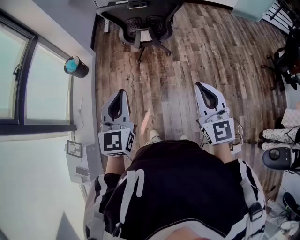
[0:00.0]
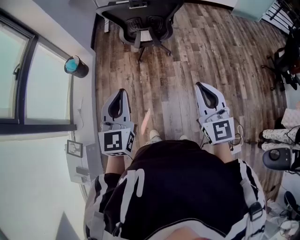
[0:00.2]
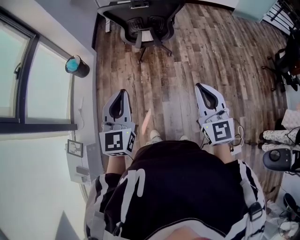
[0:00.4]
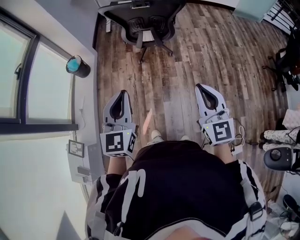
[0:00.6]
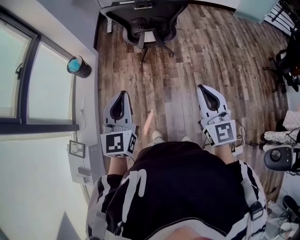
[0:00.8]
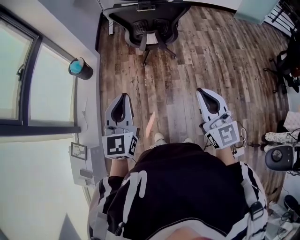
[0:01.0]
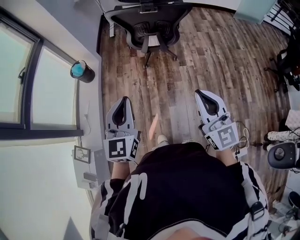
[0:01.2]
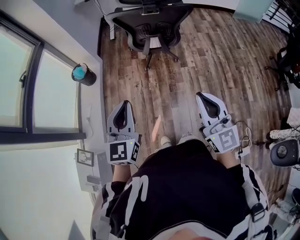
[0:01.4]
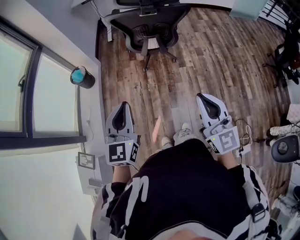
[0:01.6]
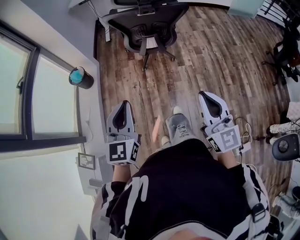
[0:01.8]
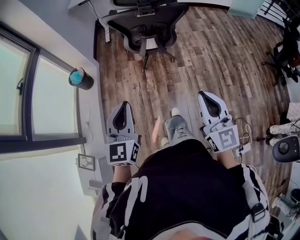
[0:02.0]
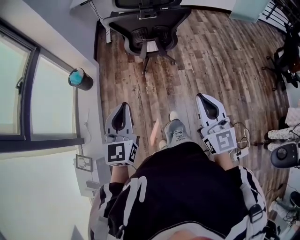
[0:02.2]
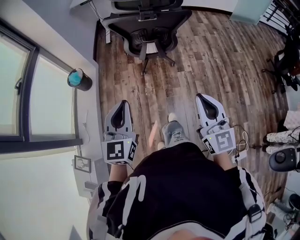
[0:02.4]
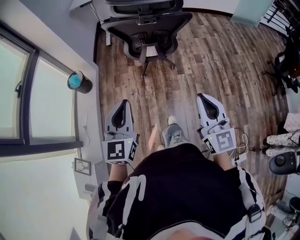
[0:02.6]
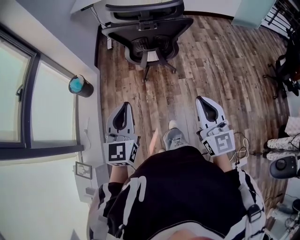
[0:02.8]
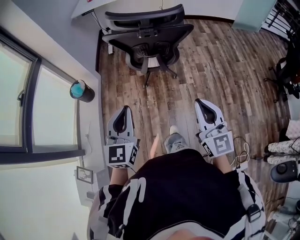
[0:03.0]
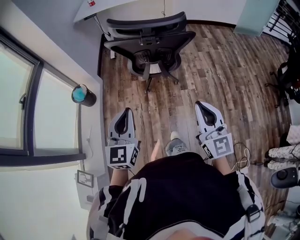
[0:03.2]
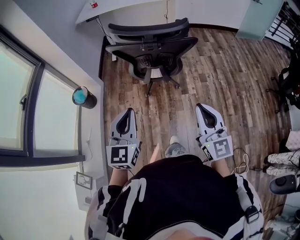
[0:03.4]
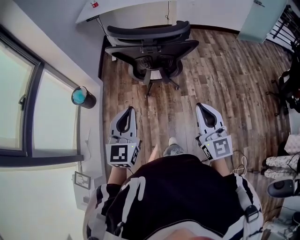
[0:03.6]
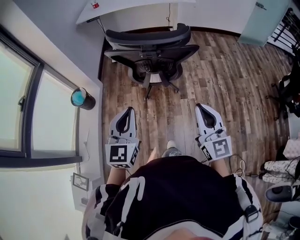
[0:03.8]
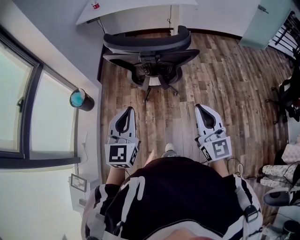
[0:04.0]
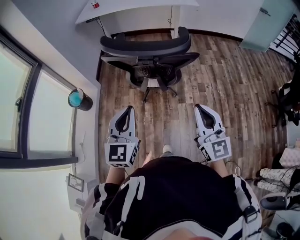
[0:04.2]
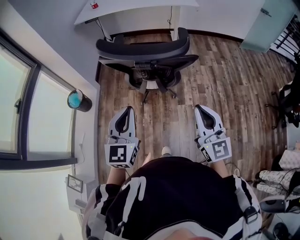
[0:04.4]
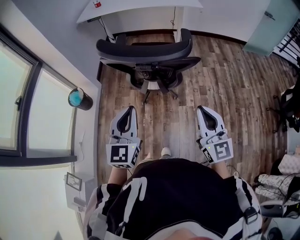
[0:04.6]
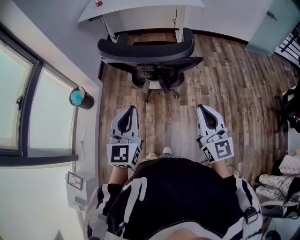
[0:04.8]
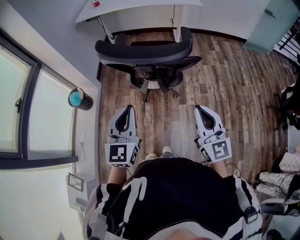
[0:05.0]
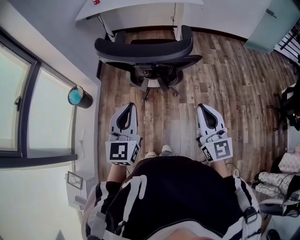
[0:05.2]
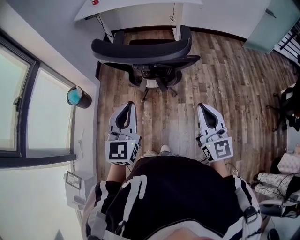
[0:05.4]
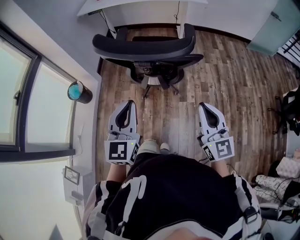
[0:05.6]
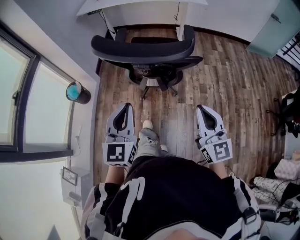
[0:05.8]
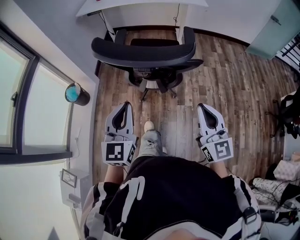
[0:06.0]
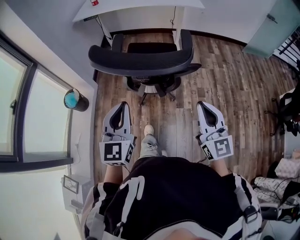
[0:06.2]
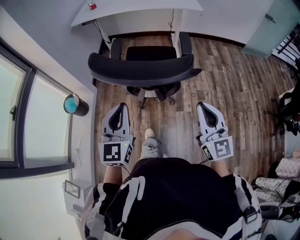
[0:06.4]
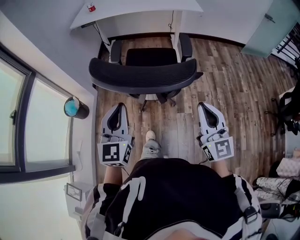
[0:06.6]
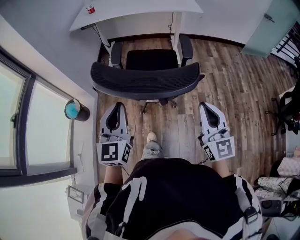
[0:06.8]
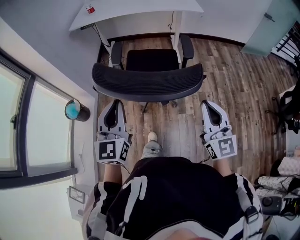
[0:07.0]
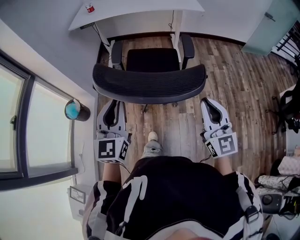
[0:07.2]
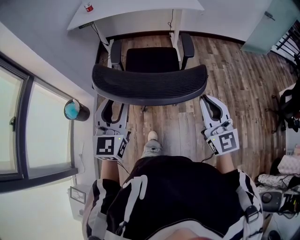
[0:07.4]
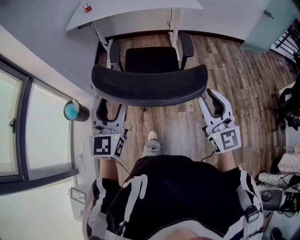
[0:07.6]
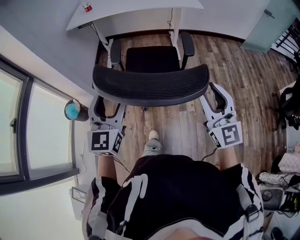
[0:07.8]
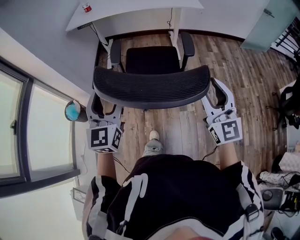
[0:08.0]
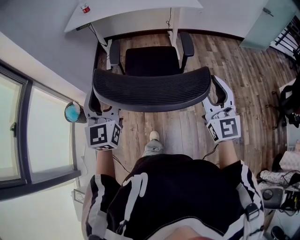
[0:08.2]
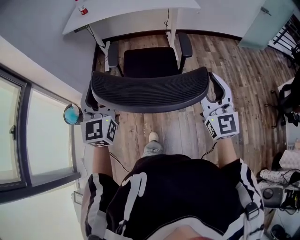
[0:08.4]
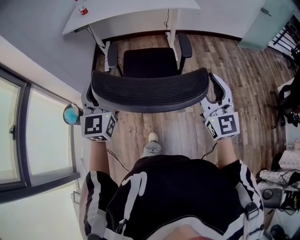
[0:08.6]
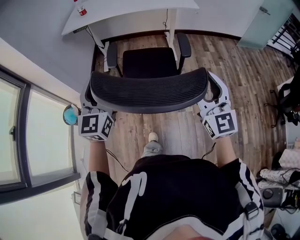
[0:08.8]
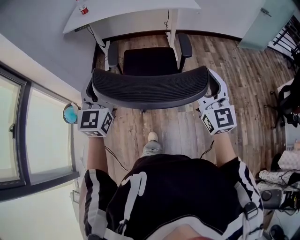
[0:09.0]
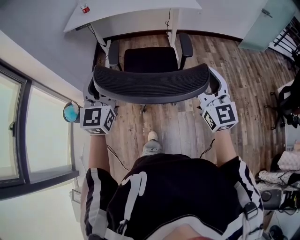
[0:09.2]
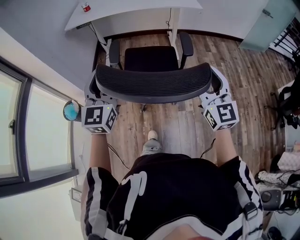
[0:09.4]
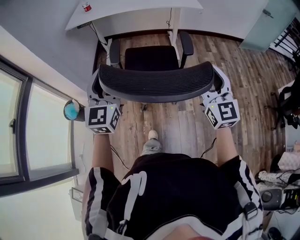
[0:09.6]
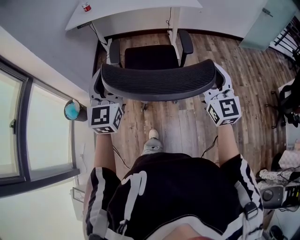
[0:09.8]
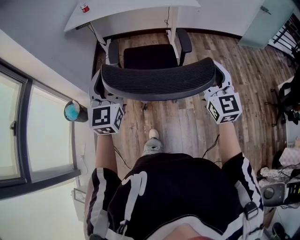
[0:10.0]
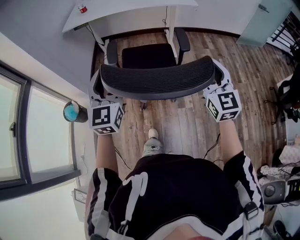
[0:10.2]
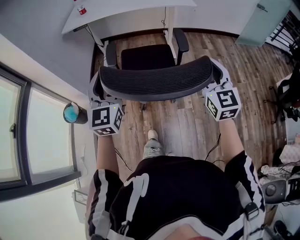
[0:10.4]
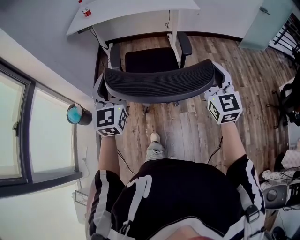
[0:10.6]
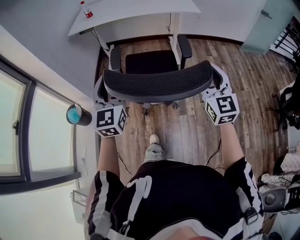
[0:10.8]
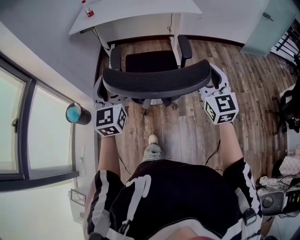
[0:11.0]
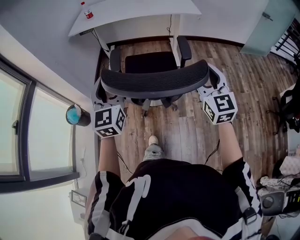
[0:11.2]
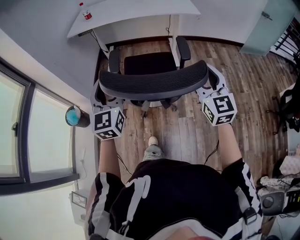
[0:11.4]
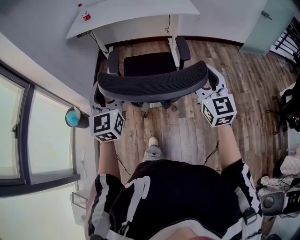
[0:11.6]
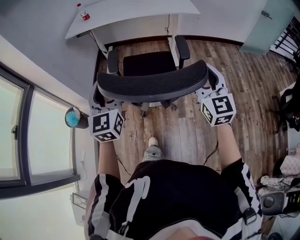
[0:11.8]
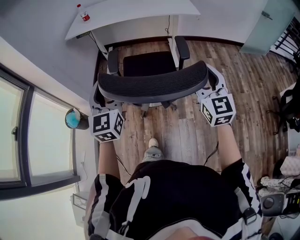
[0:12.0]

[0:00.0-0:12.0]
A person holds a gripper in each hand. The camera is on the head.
0:00.0 to 0:01.6: Both grippers move to the left, approximately 10 cm.
0:01.6 to 0:03.0: The two grippers go about 10 cm forward.
0:03.0 to 0:04.4: The two grippers go about 15 cm forward and to the right.
0:04.4 to 0:06.0: The right gripper goes approximately 5 cm forward.
0:06.0 to 0:07.6: Both grippers travel together forward, about 10 cm. The right gripper opens up. The left gripper opens its fingers.
0:07.6 to 0:09.0: Both grippers move forward, approximately 10 cm. The right gripper opens.
0:09.0 to 0:12.0: The grippers make only small movements.

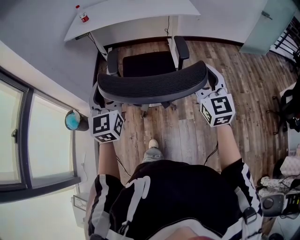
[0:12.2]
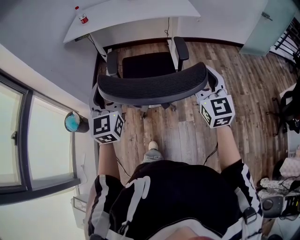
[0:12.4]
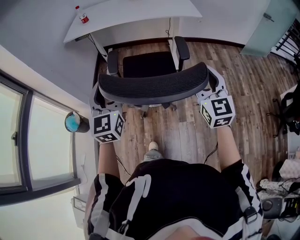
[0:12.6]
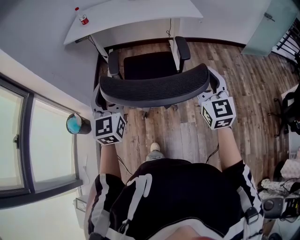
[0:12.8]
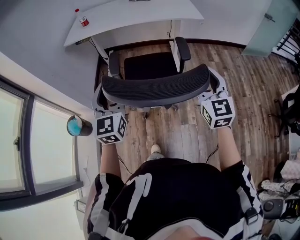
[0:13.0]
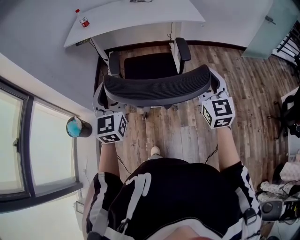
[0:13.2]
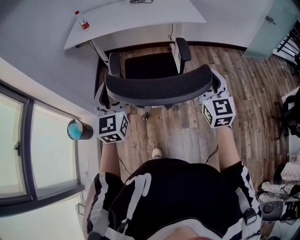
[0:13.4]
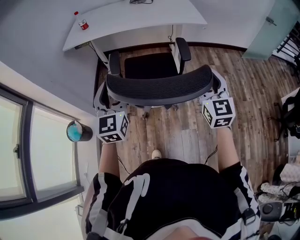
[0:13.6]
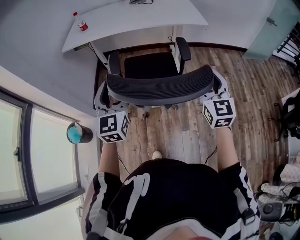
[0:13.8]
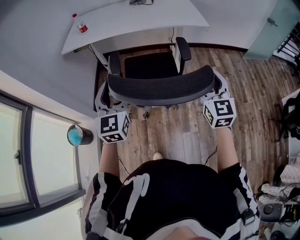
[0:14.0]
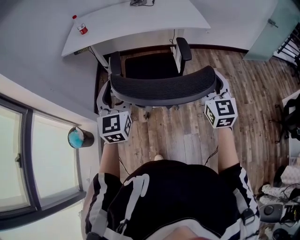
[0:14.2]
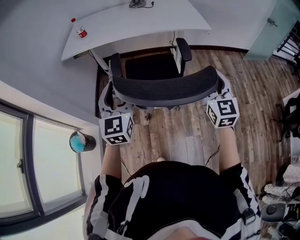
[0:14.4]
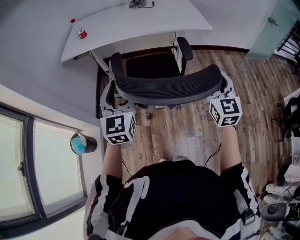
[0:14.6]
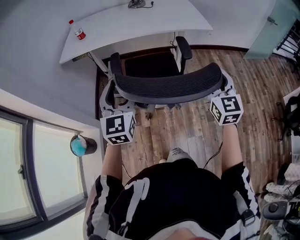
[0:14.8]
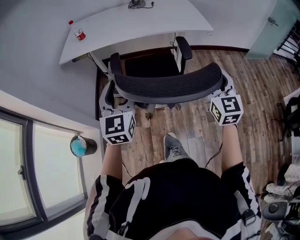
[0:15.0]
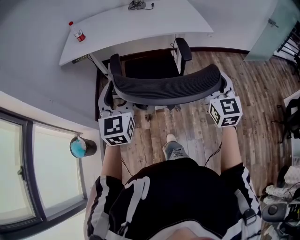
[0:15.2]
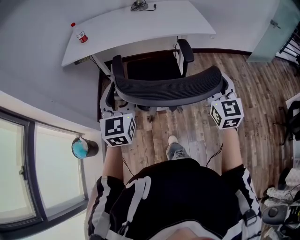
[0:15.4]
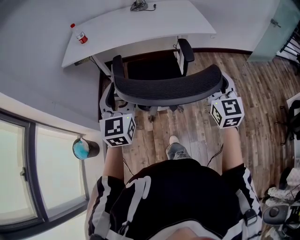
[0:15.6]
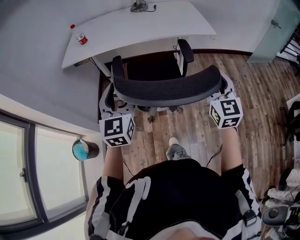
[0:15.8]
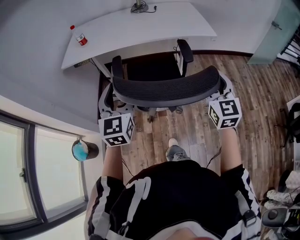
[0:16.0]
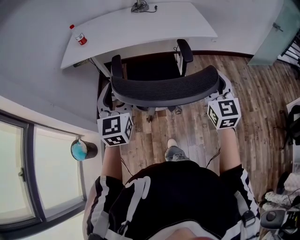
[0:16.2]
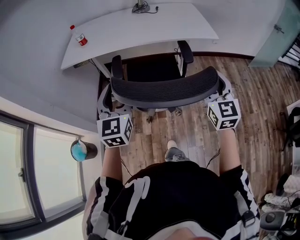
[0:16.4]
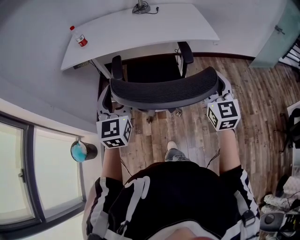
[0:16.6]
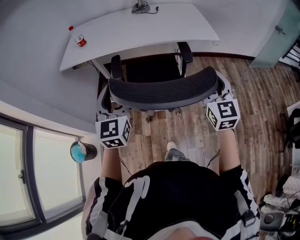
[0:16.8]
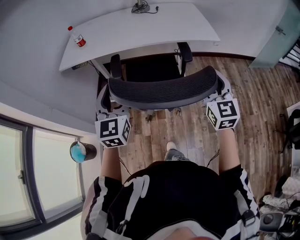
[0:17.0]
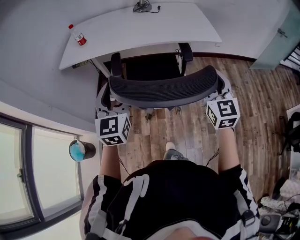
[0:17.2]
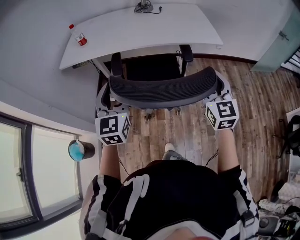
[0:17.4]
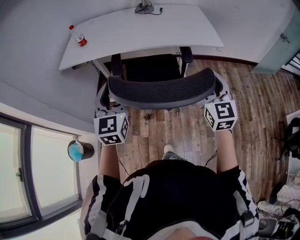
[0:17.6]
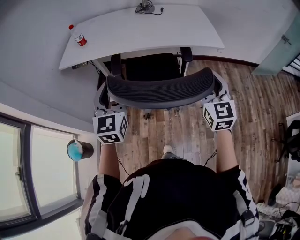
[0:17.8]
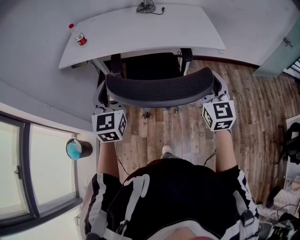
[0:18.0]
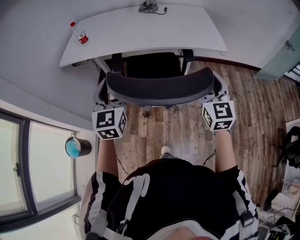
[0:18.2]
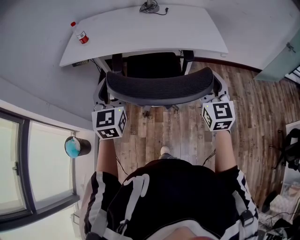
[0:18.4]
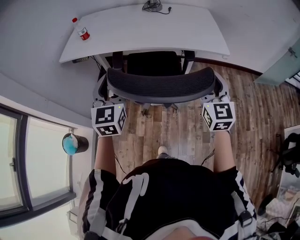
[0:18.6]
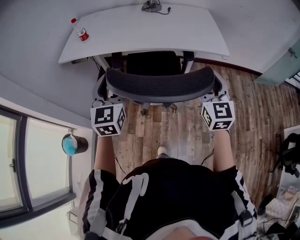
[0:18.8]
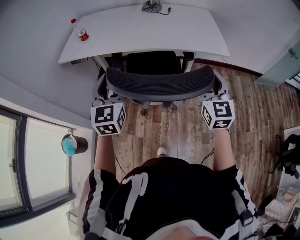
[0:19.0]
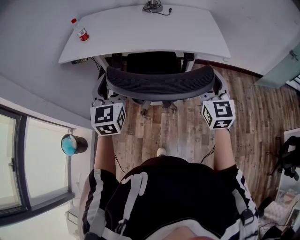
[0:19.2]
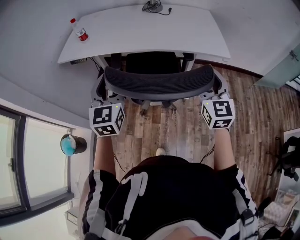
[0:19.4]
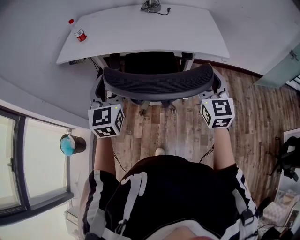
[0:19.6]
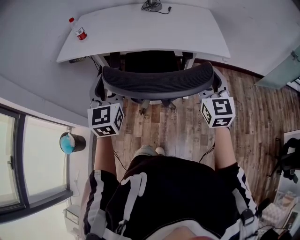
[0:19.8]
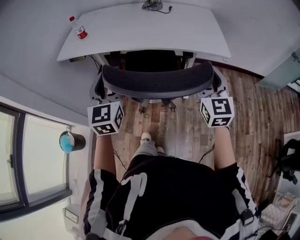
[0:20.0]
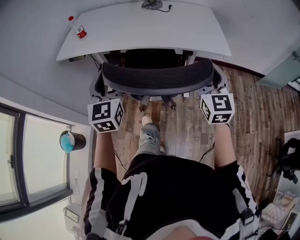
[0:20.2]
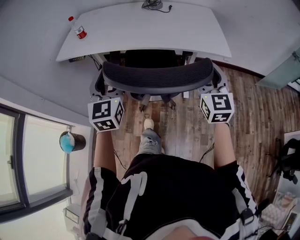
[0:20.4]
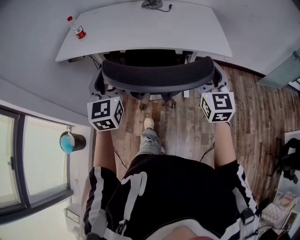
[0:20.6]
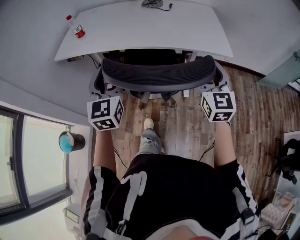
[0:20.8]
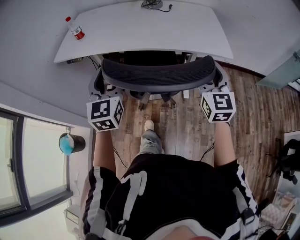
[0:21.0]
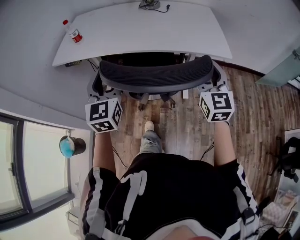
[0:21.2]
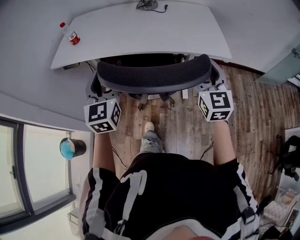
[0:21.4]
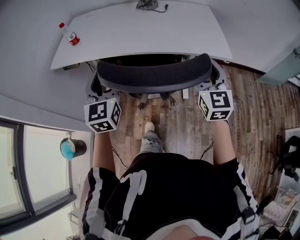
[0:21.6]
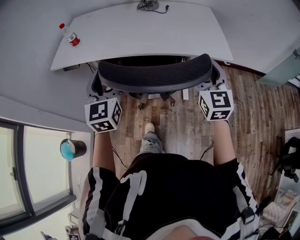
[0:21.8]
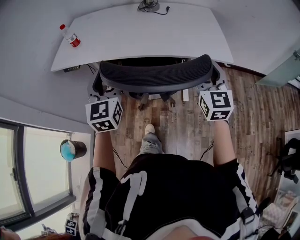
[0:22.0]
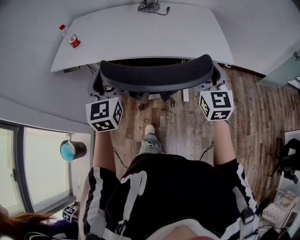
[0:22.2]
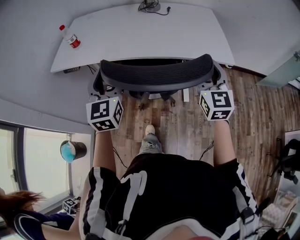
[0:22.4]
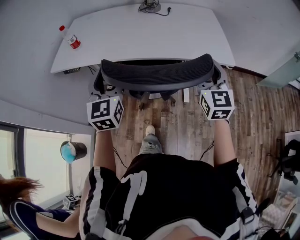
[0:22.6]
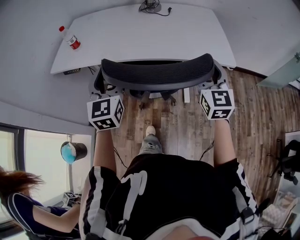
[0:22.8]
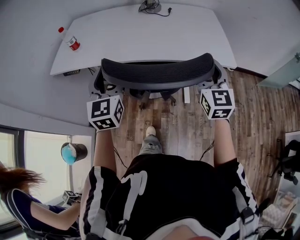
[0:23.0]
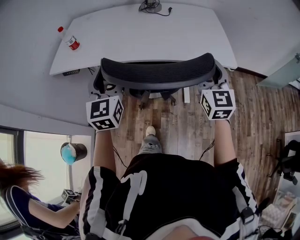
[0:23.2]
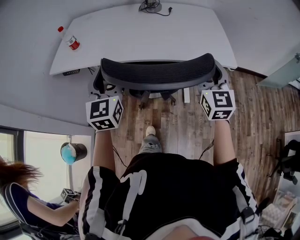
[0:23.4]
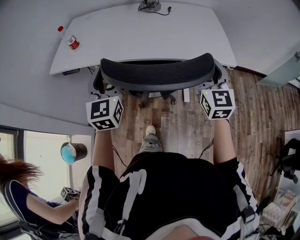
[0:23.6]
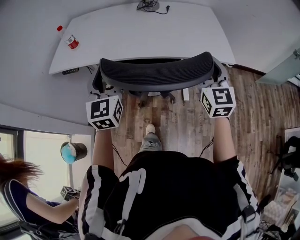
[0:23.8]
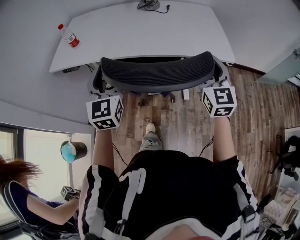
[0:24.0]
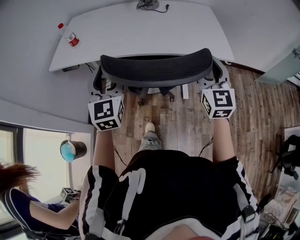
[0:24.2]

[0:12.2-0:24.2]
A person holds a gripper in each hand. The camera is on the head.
0:12.2 to 0:13.8: Both grippers move forward, approximately 15 cm.
0:13.8 to 0:15.2: The two grippers go approximately 10 cm forward.
0:15.2 to 0:16.6: The two grippers go some 5 cm forward.
0:16.6 to 0:18.2: The grippers both shift forward by some 10 cm.
0:18.2 to 0:19.8: The right gripper moves forward, some 5 cm.
0:19.8 to 0:21.2: The two grippers go some 5 cm forward.
0:21.2 to 0:22.6: Both grippers move forward, roughly 5 cm.
0:22.6 to 0:24.2: The grippers make only small movements.
